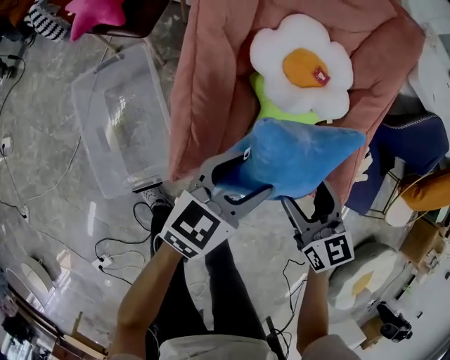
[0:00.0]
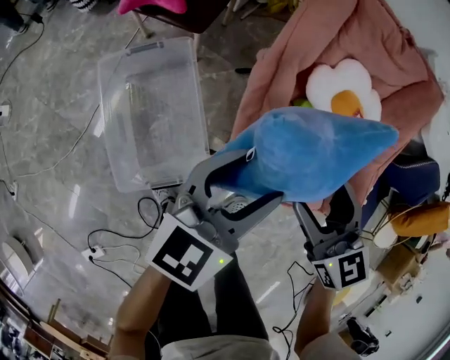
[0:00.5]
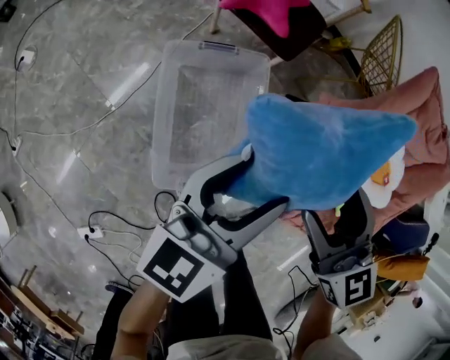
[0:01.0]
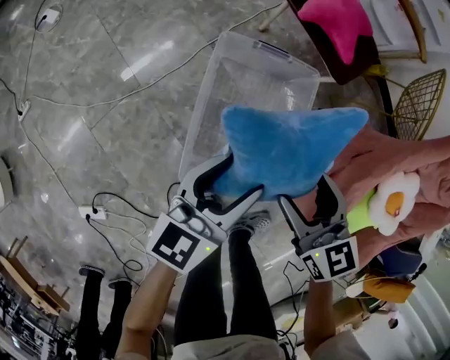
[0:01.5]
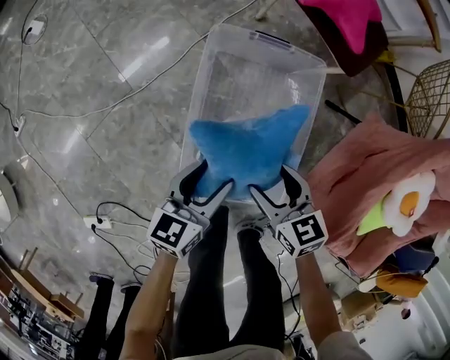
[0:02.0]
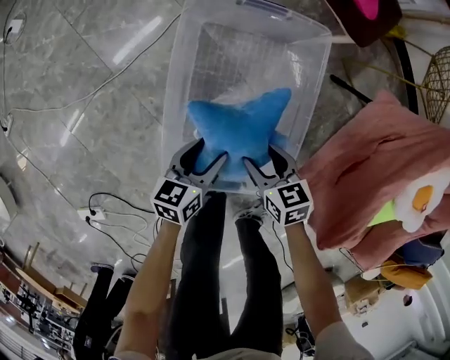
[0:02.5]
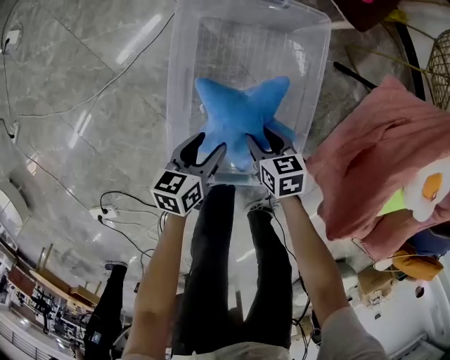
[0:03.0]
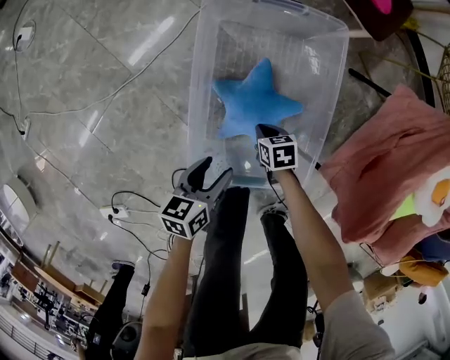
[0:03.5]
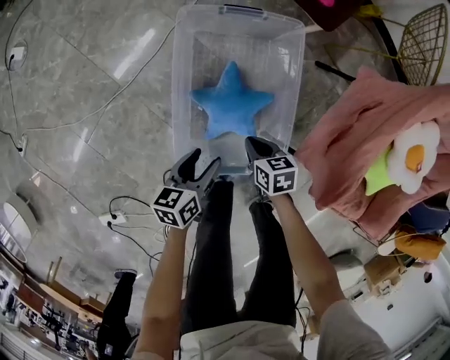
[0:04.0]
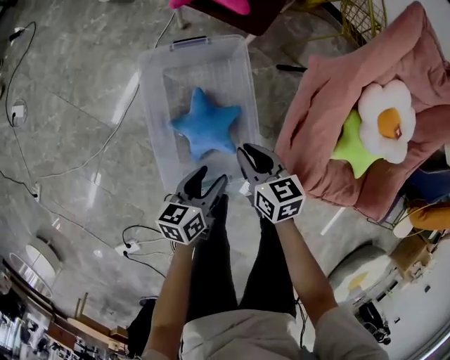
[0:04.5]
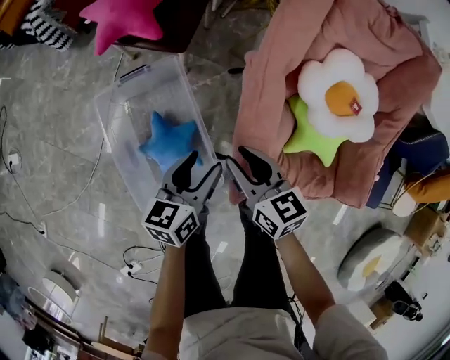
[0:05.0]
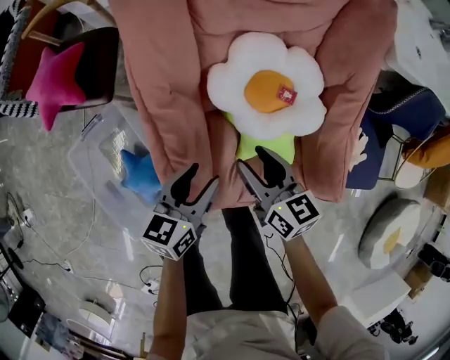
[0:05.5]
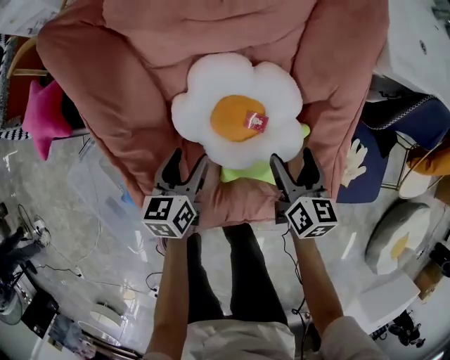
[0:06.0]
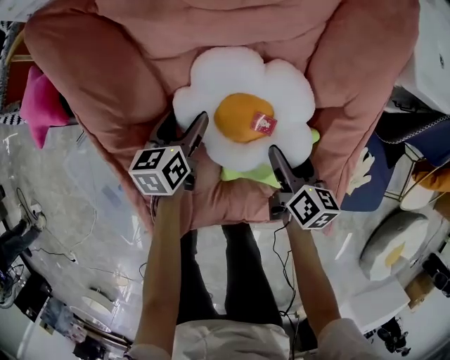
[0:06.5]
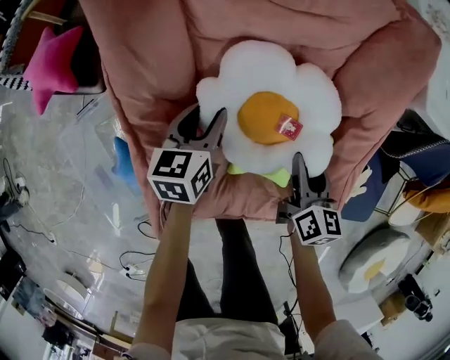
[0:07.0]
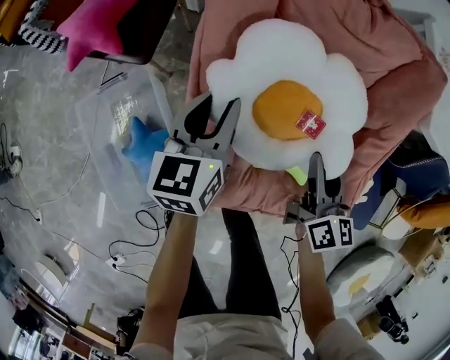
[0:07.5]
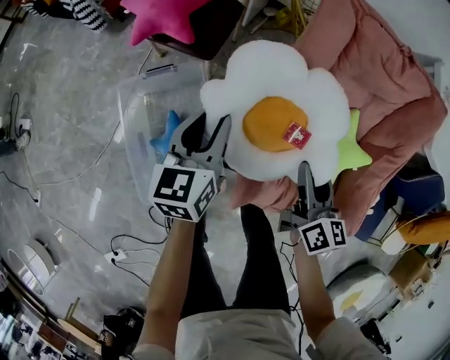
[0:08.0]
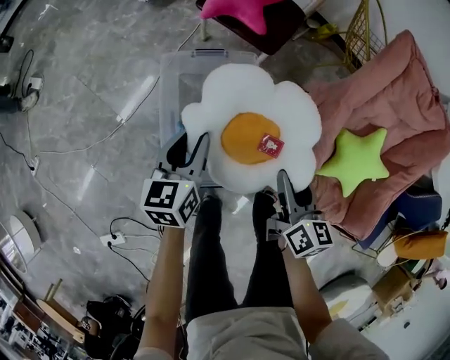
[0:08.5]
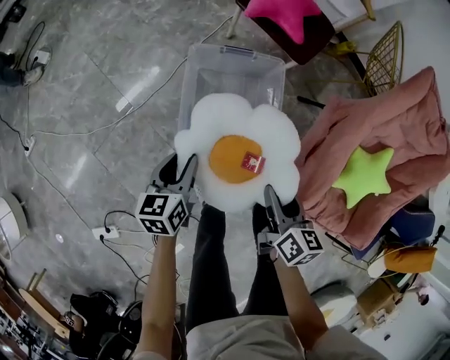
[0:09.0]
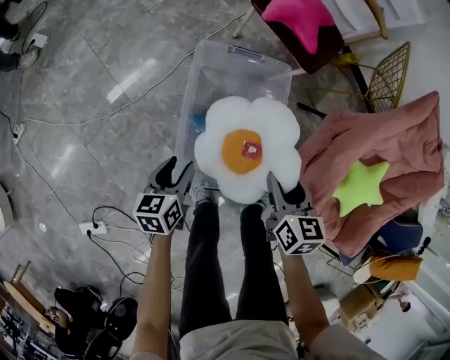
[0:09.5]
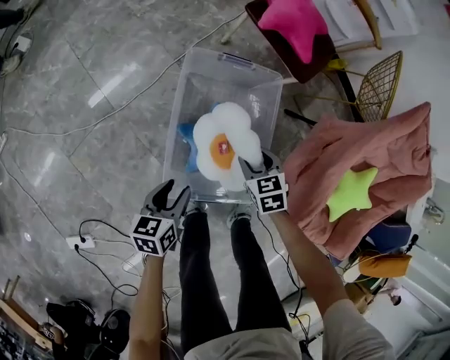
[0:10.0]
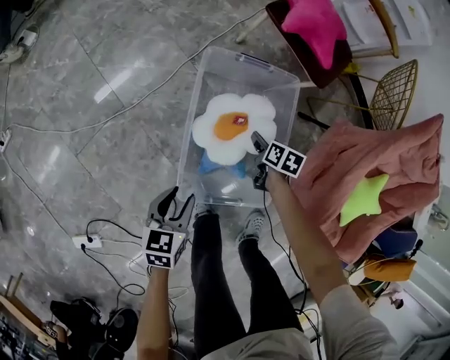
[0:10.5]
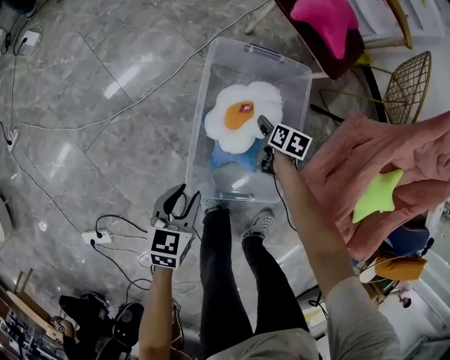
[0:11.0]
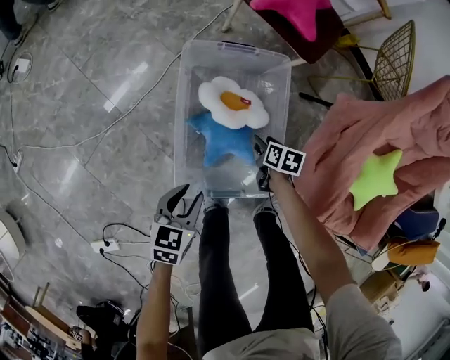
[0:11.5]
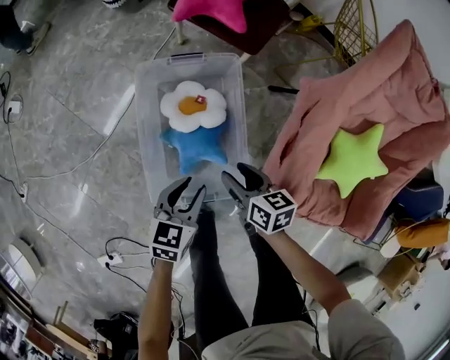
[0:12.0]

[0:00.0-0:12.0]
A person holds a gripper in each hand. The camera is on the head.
0.0 to 2.0 s: The two grippers travel together, some 60 cm. The left gripper rotates approximately 50 degrees, while the right gripper swivels roughly 40 degrees.
2.0 to 4.0 s: The left gripper goes roughly 10 cm downward and backward. Meanwhile the right gripper shifts about 10 cm downward, changes its angle by roughly 30 degrees, and closes its fingers.
4.0 to 6.0 s: The two grippers travel together, approximately 70 cm. The right gripper rotates some 70 degrees, and opens its fingers, while the left gripper turns by about 40 degrees.
6.0 to 8.0 s: The left gripper goes some 35 cm to the left and upward, turns by roughly 30 degrees, and closes up, while the right gripper goes approximately 30 cm to the left, changes its angle by about 20 degrees, and closes its fingers.
8.0 to 10.0 s: Both grippers are carried to the left, about 40 cm. Both grippers travel together downward, approximately 25 cm. The left gripper swivels approximately 30 degrees. The right gripper points its fingers approximately 40 degrees further downward.
10.0 to 12.0 s: The left gripper is displaced to the right by some 20 cm, and swivels approximately 30 degrees. Meanwhile the right gripper moves to the right, some 10 cm, travels downward and back again, approximately 15 cm each way, and rotates around the line of its fingers by approximately 40 degrees, clockwise from behind.

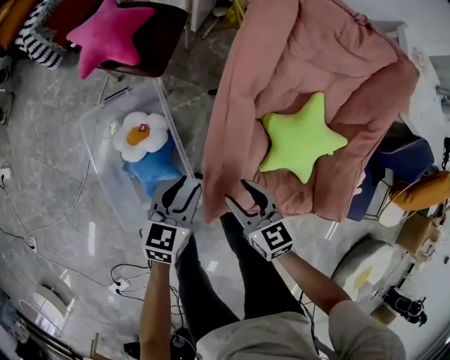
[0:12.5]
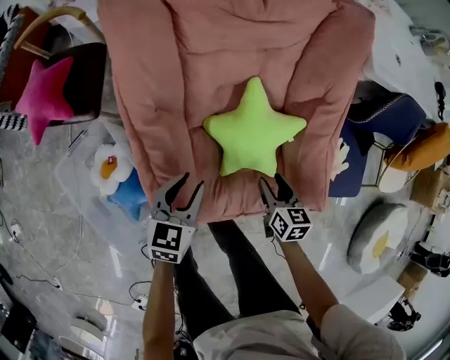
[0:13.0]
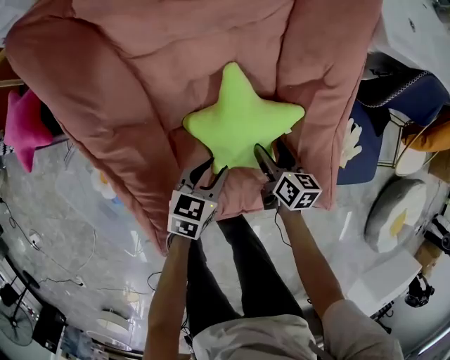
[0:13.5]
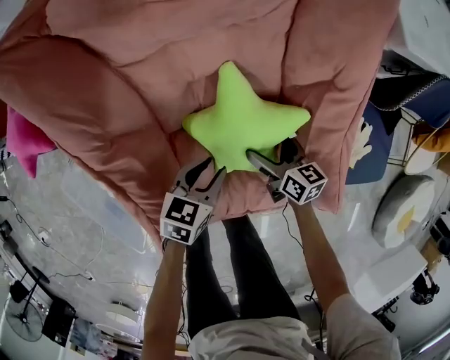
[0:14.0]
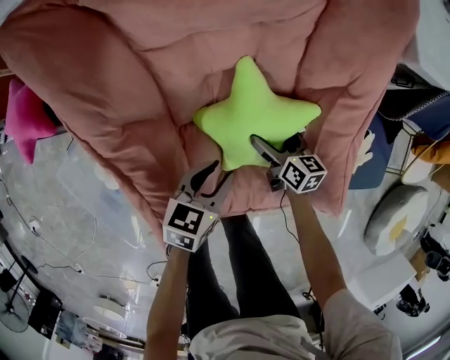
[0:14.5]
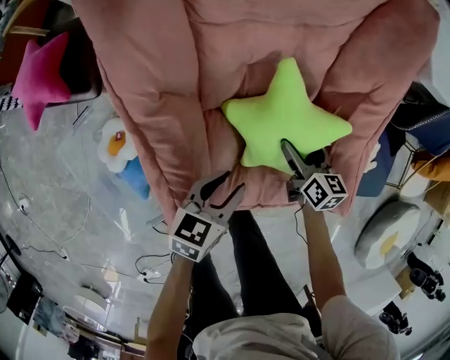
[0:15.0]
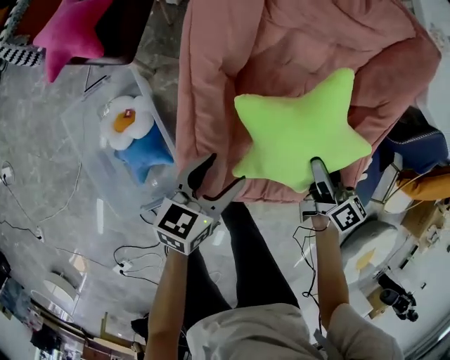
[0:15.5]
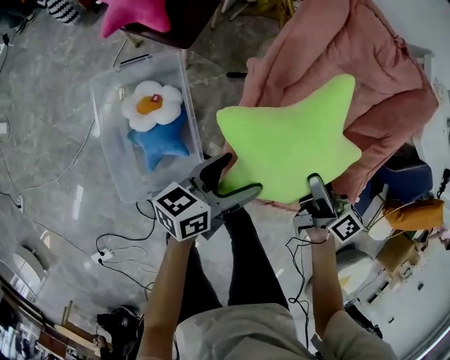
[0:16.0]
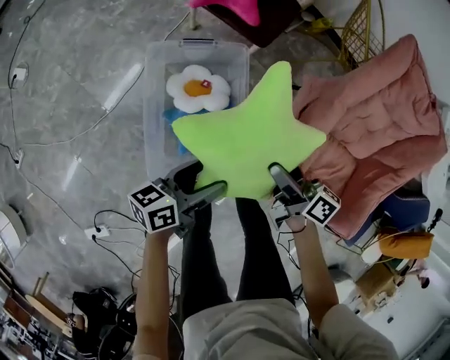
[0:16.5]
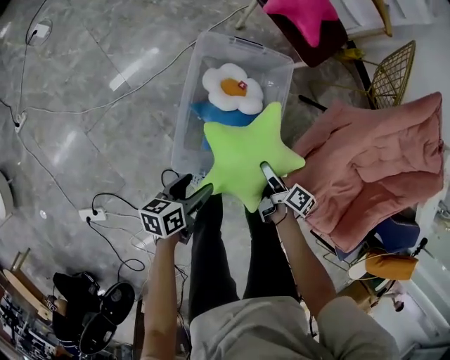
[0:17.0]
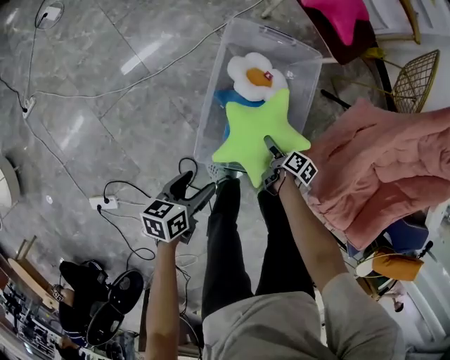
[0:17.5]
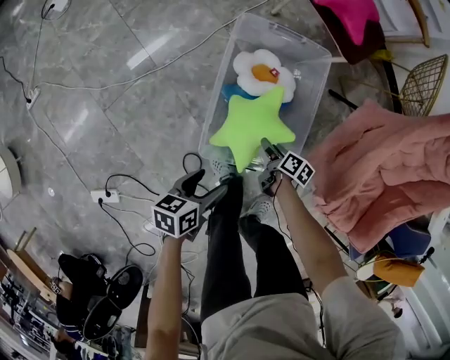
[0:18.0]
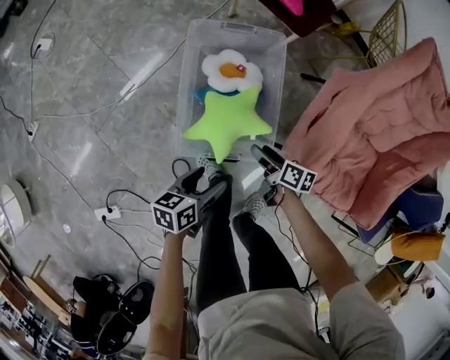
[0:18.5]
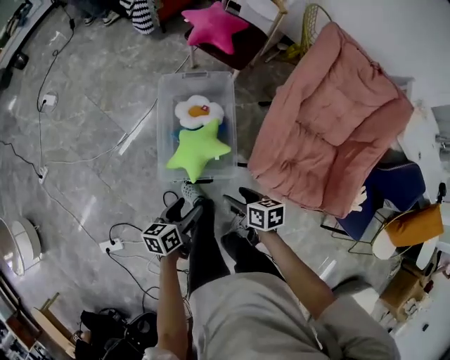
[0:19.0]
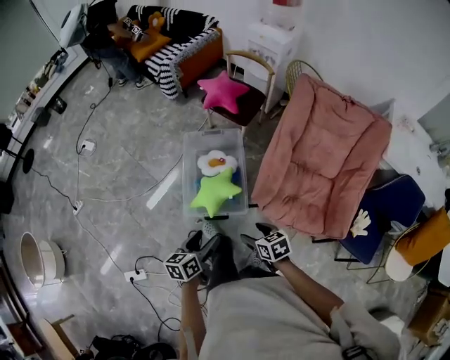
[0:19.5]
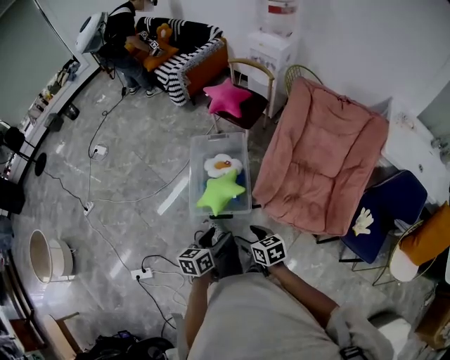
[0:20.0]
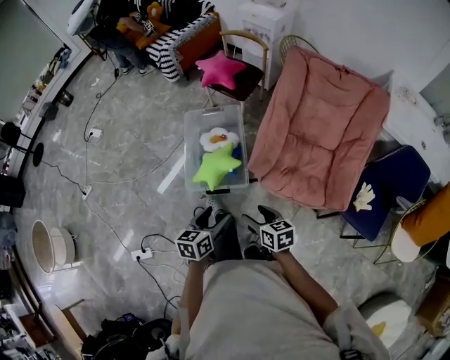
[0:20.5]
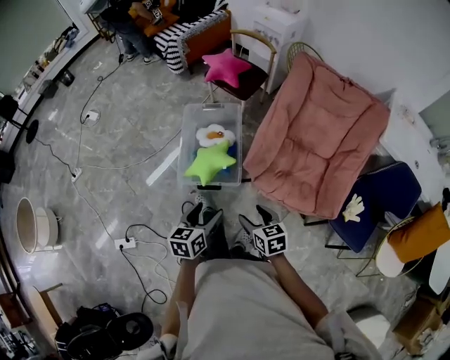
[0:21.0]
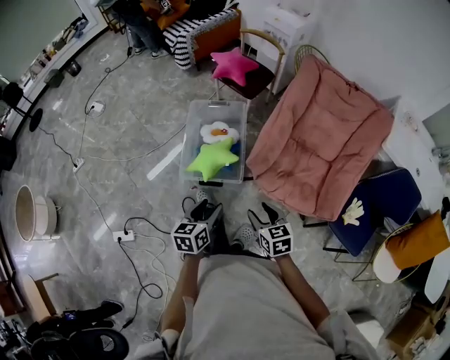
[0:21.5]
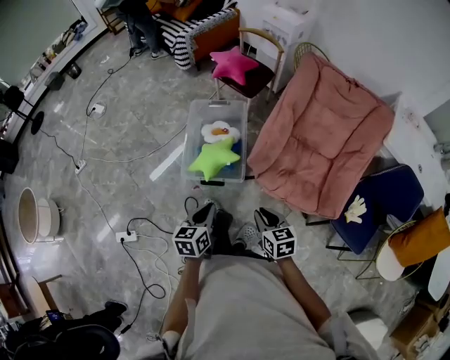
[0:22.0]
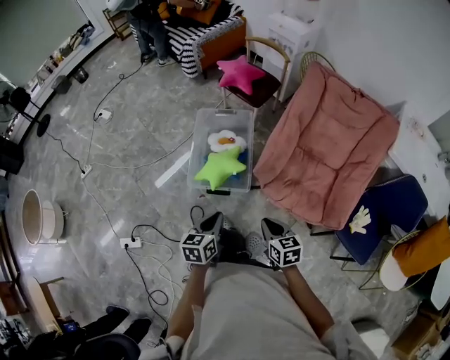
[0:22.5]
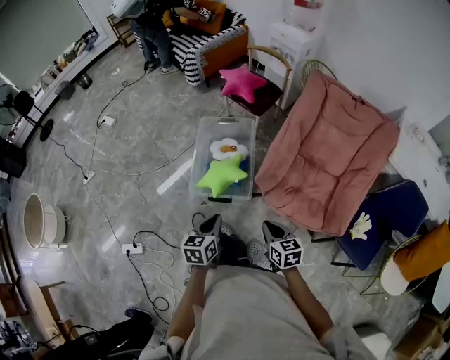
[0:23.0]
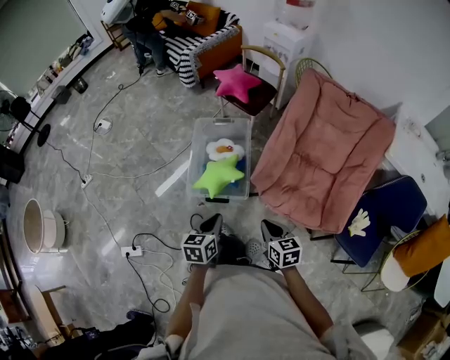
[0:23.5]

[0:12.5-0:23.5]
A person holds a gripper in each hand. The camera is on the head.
12.5 to 14.5 s: The right gripper moves about 40 cm, changes its angle by approximately 40 degrees, and opens its fingers, while the left gripper shifts by approximately 30 cm, and swivels about 30 degrees.
14.5 to 16.0 s: The left gripper shifts roughly 30 cm to the left, backward and upward, turns by approximately 40 degrees, and opens, while the right gripper is displaced upward, to the left and backward by approximately 35 cm, and changes its angle by about 30 degrees.
16.0 to 18.0 s: The two grippers travel together, approximately 50 cm. The left gripper turns by some 40 degrees, while the right gripper angles its fingers downward, by some 40 degrees.
18.0 to 20.0 s: The right gripper heads upward and backward, covering about 50 cm, and rolls counterclockwise, seen from behind, by some 40 degrees. The left gripper goes approximately 50 cm upward, to the right and backward, and rotates approximately 20 degrees.
20.0 to 21.5 s: The right gripper moves to the right, roughly 10 cm.
21.5 to 23.5 s: The left gripper closes up; the right gripper closes up.

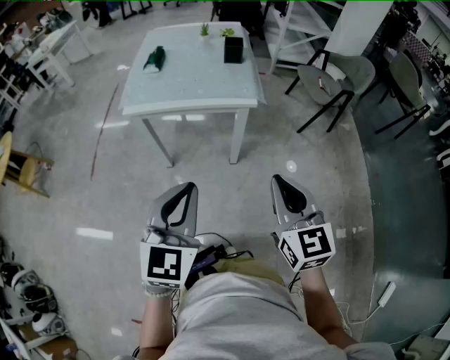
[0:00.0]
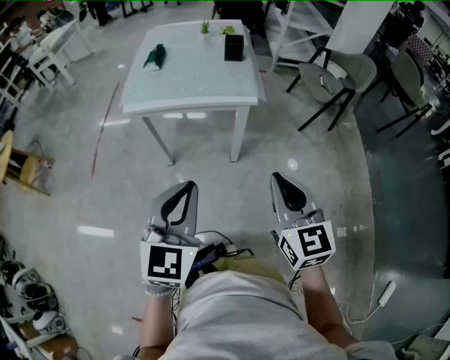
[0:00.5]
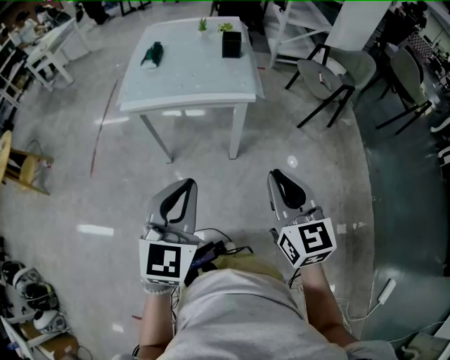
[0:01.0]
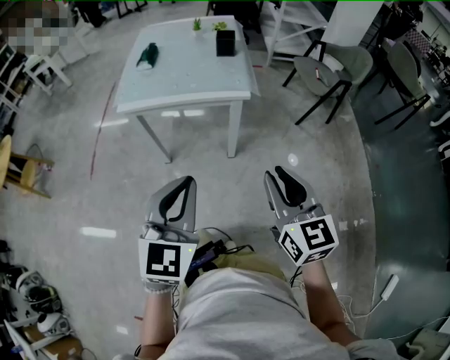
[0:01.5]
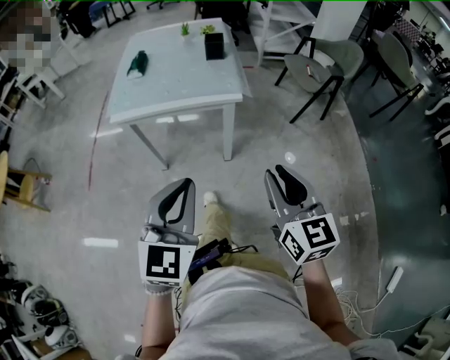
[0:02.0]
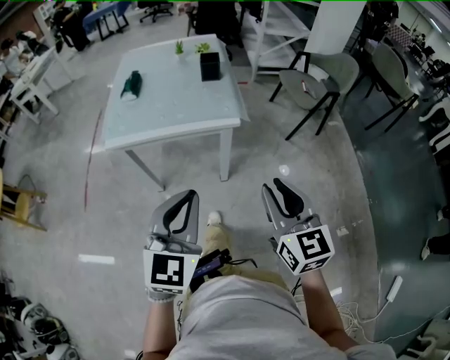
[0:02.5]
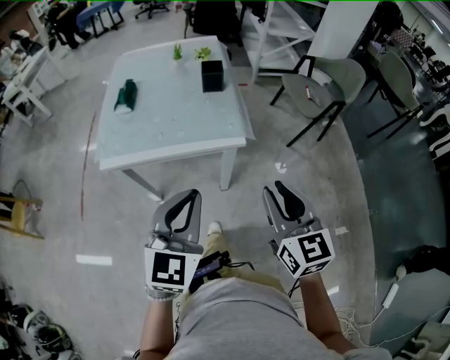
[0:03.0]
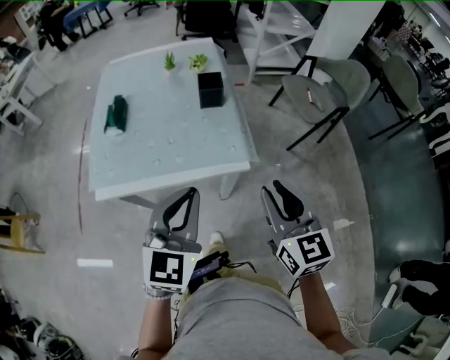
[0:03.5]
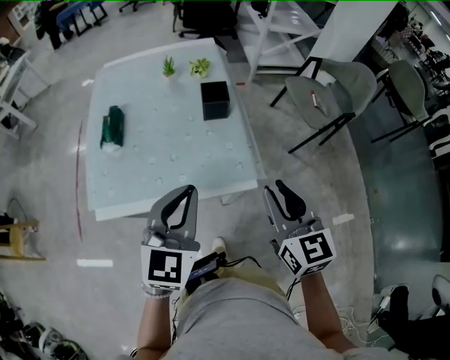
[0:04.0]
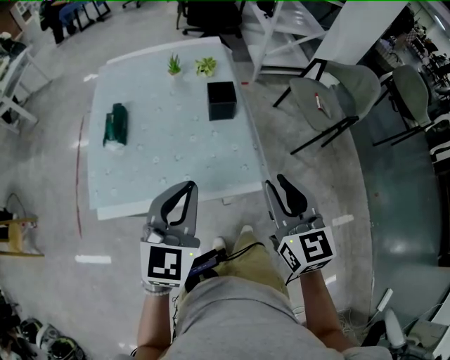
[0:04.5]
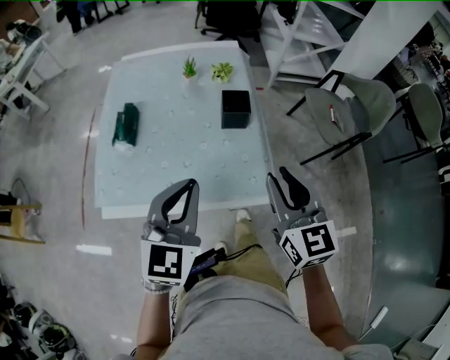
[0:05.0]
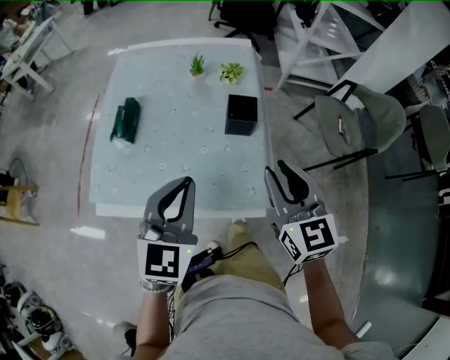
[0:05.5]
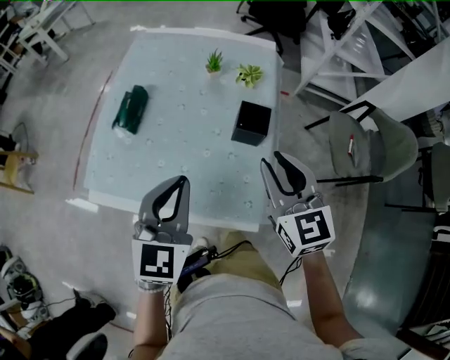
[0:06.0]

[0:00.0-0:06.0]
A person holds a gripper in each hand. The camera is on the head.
0.0 to 2.0 s: The right gripper opens.
2.0 to 4.0 s: The grippers both shift forward by roughly 35 cm.
4.0 to 6.0 s: The right gripper is displaced forward by some 20 cm, and swivels some 30 degrees. The left gripper moves forward, about 10 cm, and changes its angle by some 20 degrees.
